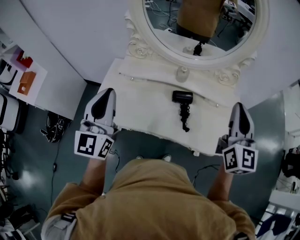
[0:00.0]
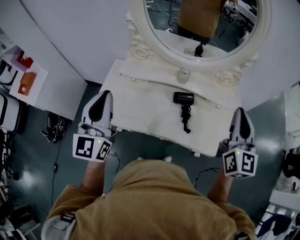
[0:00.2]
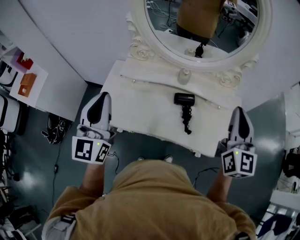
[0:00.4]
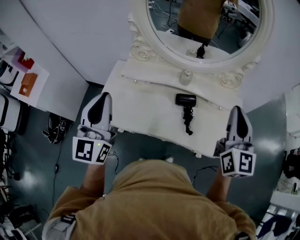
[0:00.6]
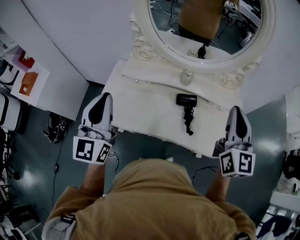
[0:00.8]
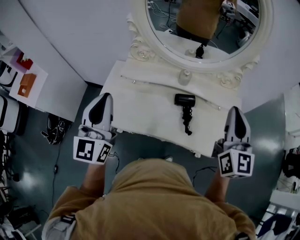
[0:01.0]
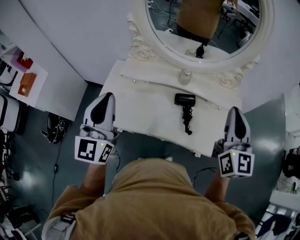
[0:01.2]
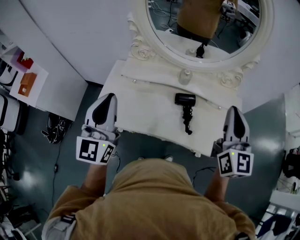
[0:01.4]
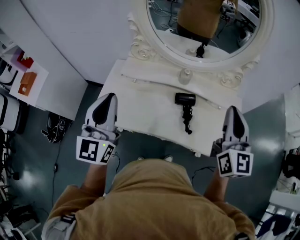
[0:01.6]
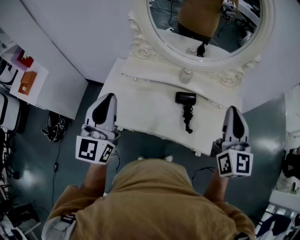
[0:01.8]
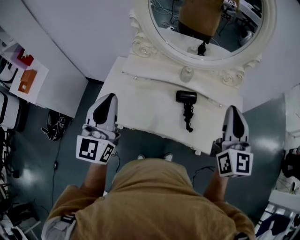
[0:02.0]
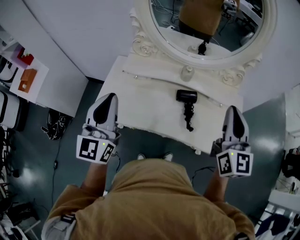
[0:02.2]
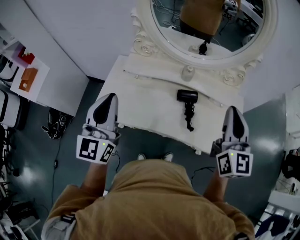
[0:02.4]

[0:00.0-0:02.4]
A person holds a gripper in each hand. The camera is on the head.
0:00.0 to 0:02.4: The grippers make only small movements.

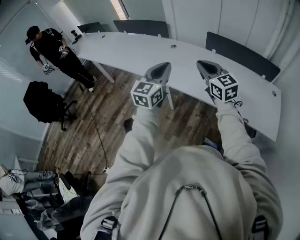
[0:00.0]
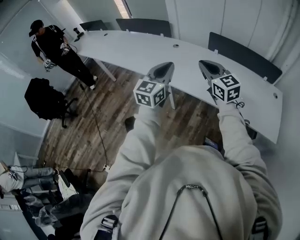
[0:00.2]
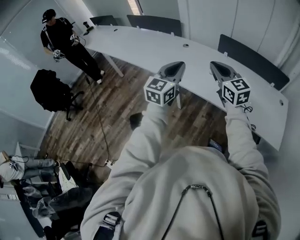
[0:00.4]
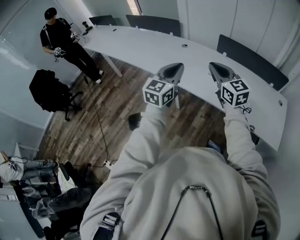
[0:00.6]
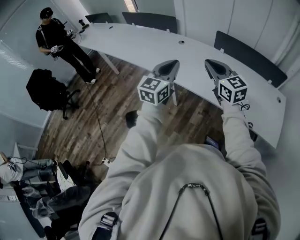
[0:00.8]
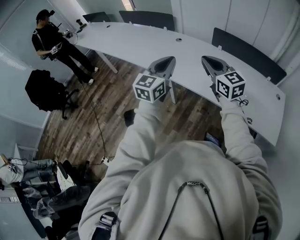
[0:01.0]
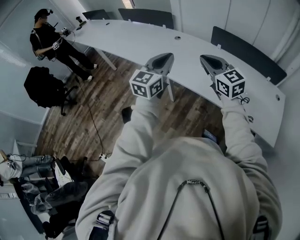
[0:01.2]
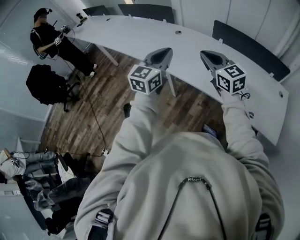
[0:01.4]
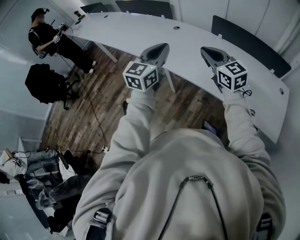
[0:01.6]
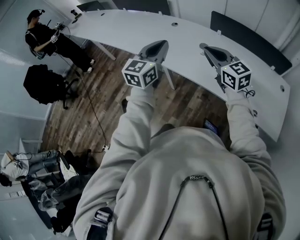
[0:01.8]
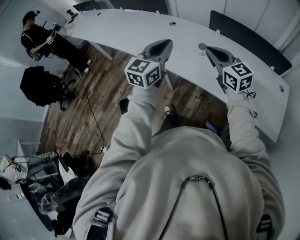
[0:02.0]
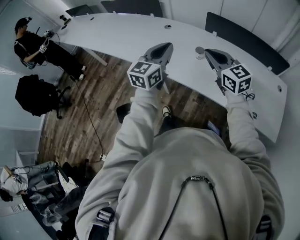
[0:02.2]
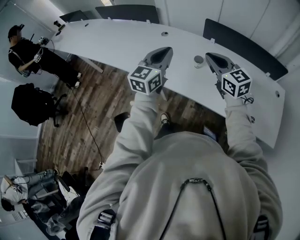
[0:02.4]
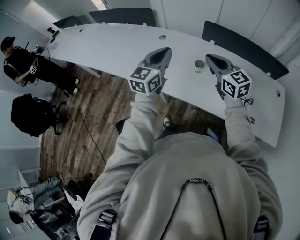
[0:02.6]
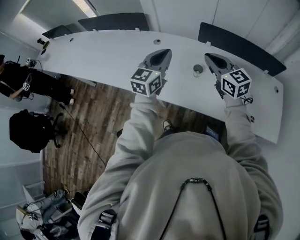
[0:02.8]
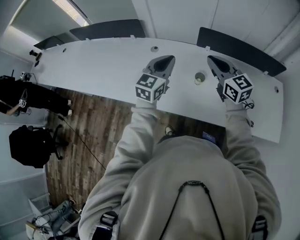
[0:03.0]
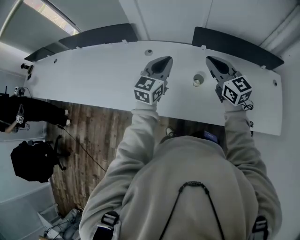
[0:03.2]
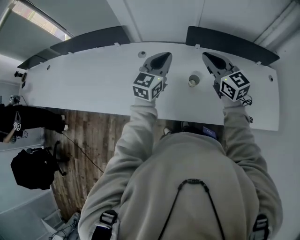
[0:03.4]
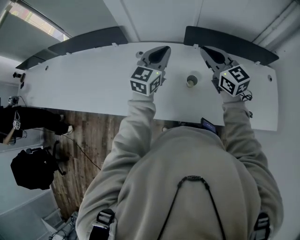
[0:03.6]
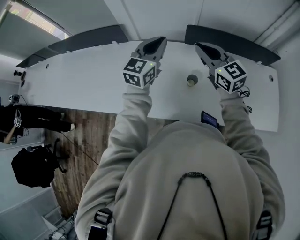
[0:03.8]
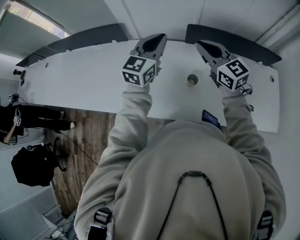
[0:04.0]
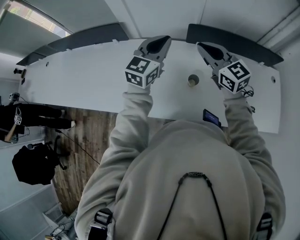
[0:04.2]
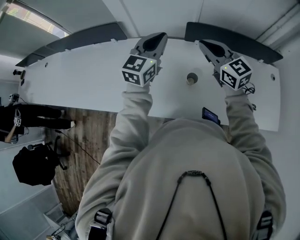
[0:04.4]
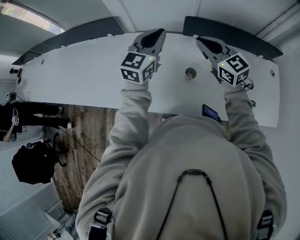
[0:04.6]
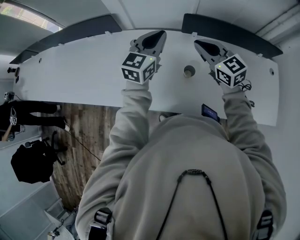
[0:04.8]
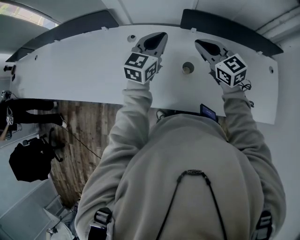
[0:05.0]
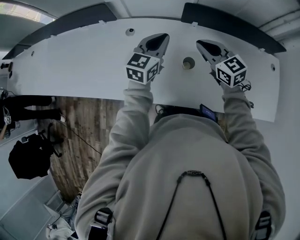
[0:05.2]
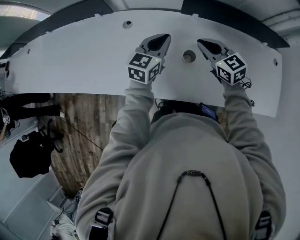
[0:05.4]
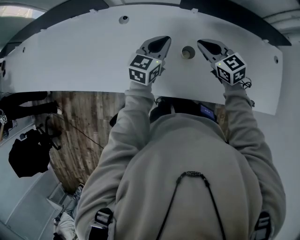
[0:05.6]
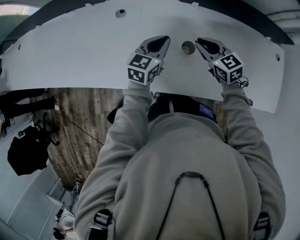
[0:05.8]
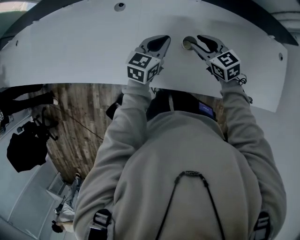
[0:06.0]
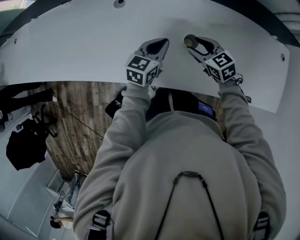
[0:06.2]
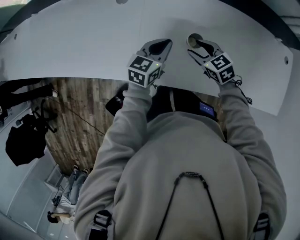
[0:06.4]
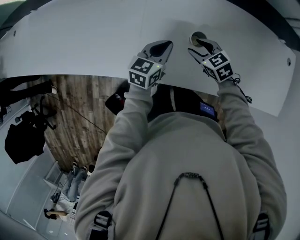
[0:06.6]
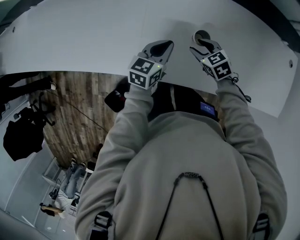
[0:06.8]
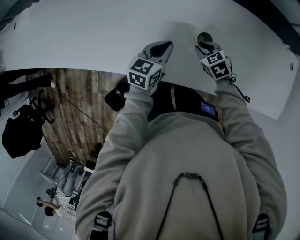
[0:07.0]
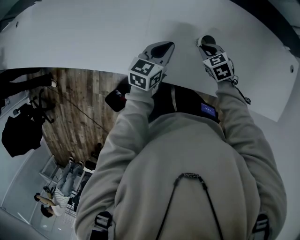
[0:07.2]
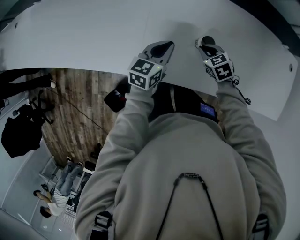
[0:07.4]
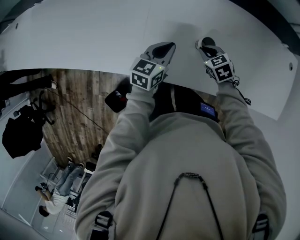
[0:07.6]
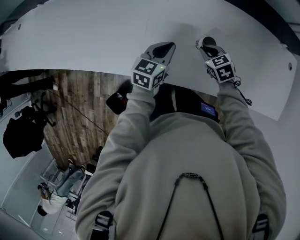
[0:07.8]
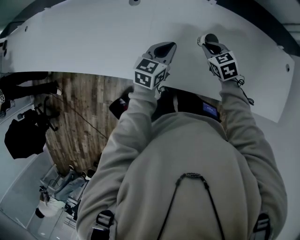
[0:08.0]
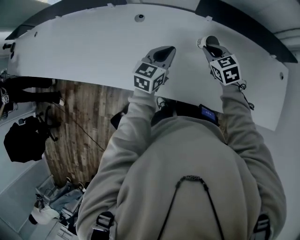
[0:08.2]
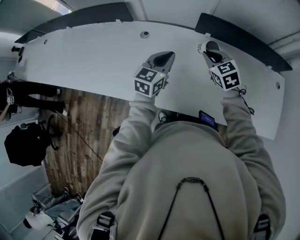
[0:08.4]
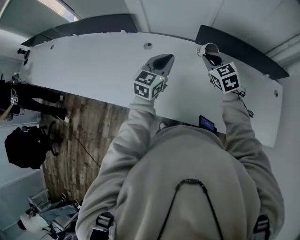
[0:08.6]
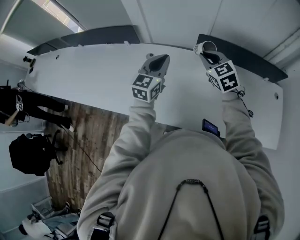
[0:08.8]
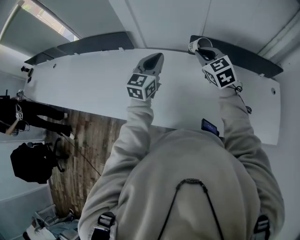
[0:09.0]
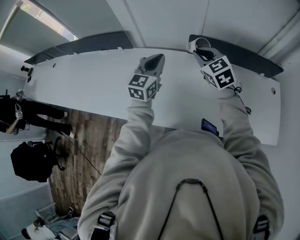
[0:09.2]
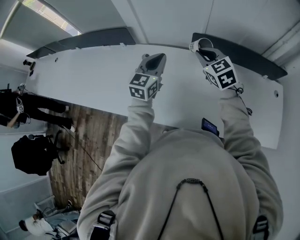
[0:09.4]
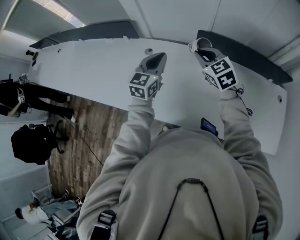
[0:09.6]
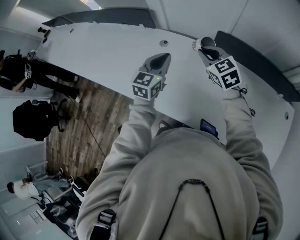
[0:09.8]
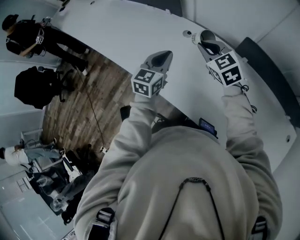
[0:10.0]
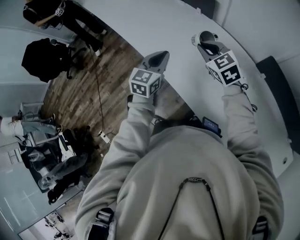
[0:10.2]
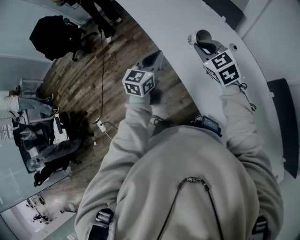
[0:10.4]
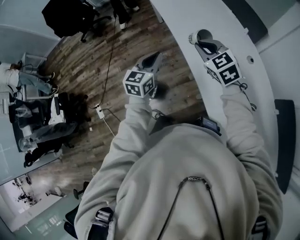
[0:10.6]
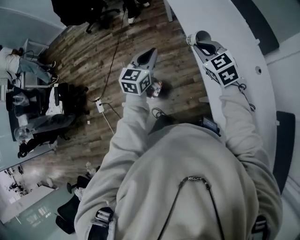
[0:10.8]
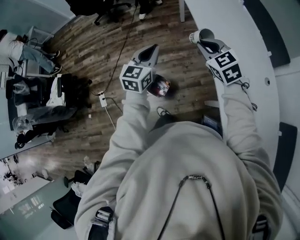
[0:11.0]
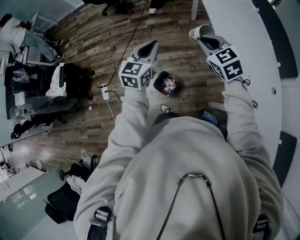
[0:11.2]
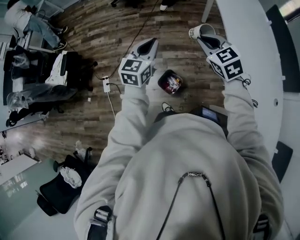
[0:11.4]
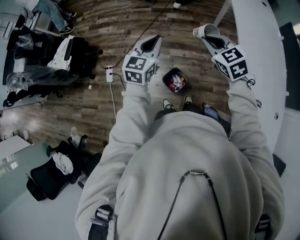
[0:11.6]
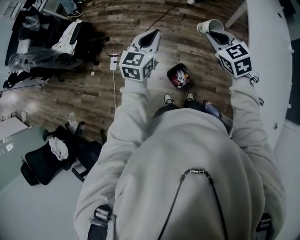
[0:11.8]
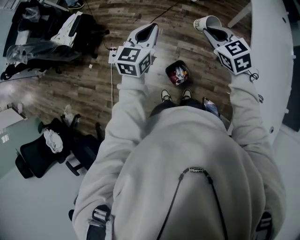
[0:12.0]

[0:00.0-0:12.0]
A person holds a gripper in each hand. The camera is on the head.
0:00.0 to 0:01.6: The left gripper ends up approximately 5 cm from where it was; the right gripper travels to the right by roughly 5 cm.
0:01.6 to 0:03.0: Both grippers move forward, about 30 cm. The left gripper rotates approximately 20 degrees; the right gripper swivels some 20 degrees.
0:03.0 to 0:04.4: The two grippers go some 10 cm forward.
0:04.4 to 0:06.0: The two grippers go approximately 25 cm downward. The left gripper rotates roughly 30 degrees. The right gripper swivels about 30 degrees, and opens its fingers.
0:06.0 to 0:07.6: The right gripper heads downward, covering approximately 10 cm, swivels about 20 degrees, and closes its fingers; the left gripper travels downward by roughly 5 cm.
0:07.6 to 0:09.0: Both grippers move upward, roughly 30 cm. The right gripper points its fingers approximately 30 degrees further upward, while the left gripper turns by roughly 30 degrees.
0:09.0 to 0:10.4: The left gripper ends up about 40 cm from where it was, and swivels roughly 50 degrees. The right gripper changes place by roughly 40 cm, and rotates approximately 60 degrees.
0:10.4 to 0:12.0: The pair of grippers is taken about 60 cm. The left gripper rotates about 50 degrees, while the right gripper turns by some 50 degrees.

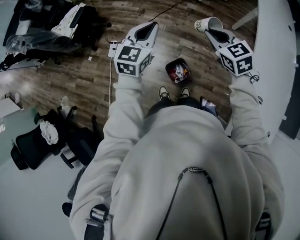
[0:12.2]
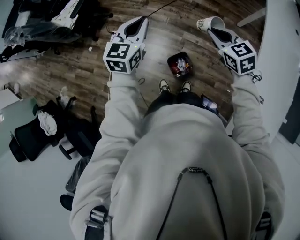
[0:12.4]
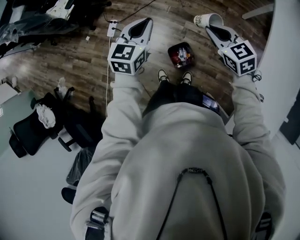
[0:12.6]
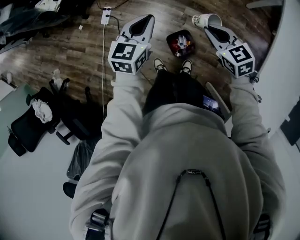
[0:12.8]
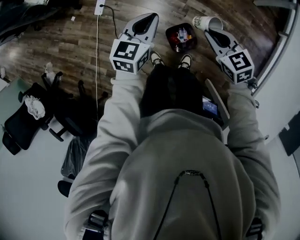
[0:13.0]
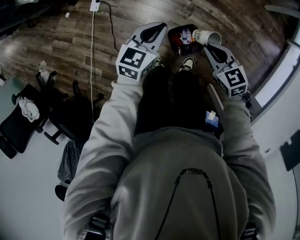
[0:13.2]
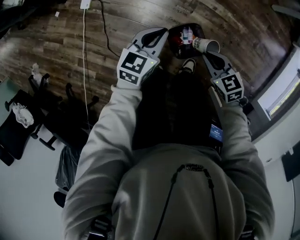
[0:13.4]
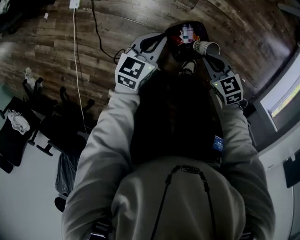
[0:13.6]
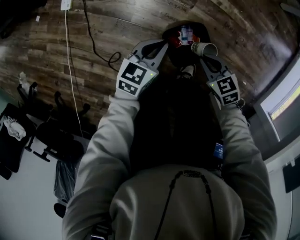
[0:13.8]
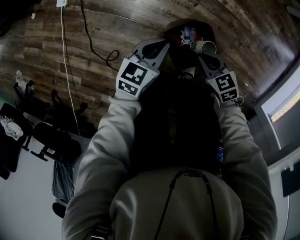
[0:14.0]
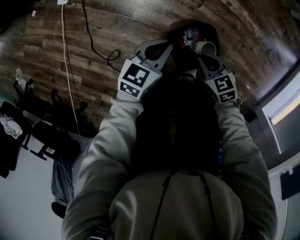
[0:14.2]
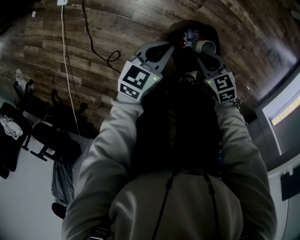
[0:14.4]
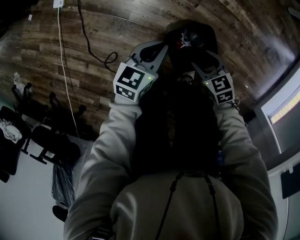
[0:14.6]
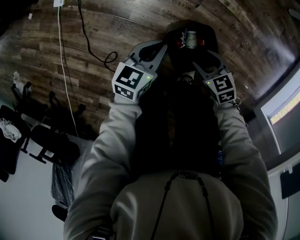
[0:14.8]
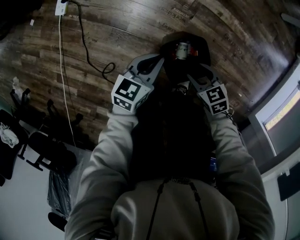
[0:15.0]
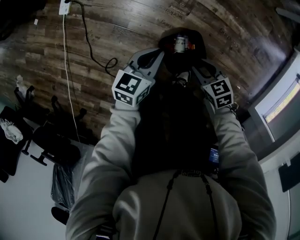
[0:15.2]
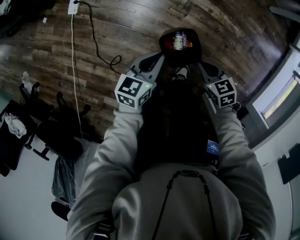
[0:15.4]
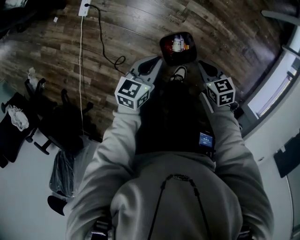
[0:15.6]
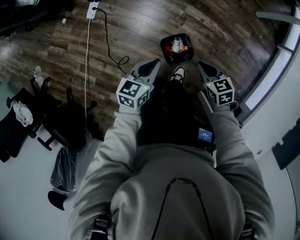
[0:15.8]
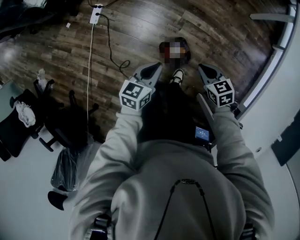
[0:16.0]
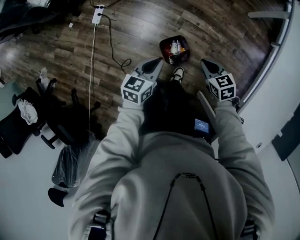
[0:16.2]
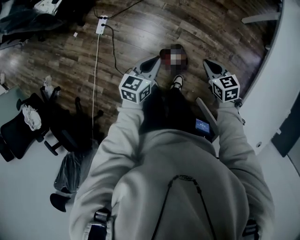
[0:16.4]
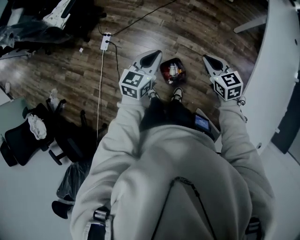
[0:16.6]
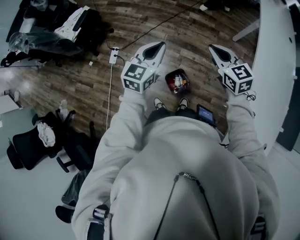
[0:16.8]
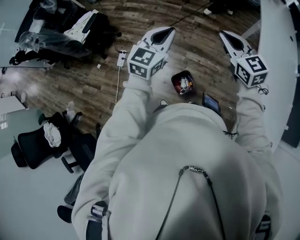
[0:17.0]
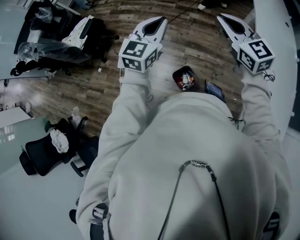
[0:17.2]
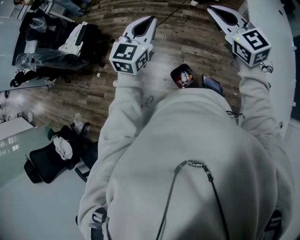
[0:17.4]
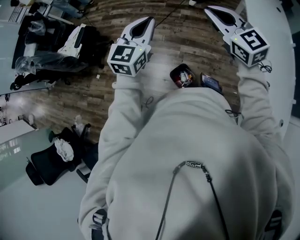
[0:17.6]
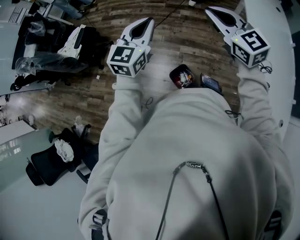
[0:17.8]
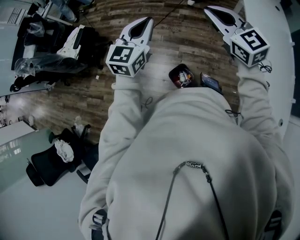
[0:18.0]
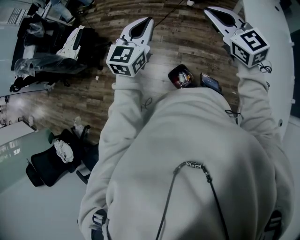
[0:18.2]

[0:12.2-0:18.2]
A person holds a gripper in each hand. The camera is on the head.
0:12.2 to 0:13.8: The two grippers go roughly 70 cm downward. The left gripper changes its angle by approximately 30 degrees. The right gripper turns by roughly 30 degrees.
0:13.8 to 0:15.2: The right gripper moves approximately 10 cm downward and comes back, and opens up.
0:15.2 to 0:16.6: The grippers both shift upward by approximately 50 cm. The right gripper rotates approximately 30 degrees, and closes up.
0:16.6 to 0:18.2: The two grippers go roughly 25 cm upward. The left gripper rotates some 30 degrees; the right gripper rotates some 30 degrees.

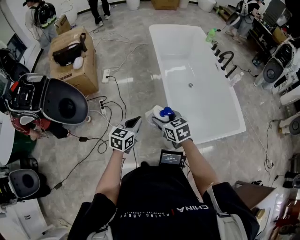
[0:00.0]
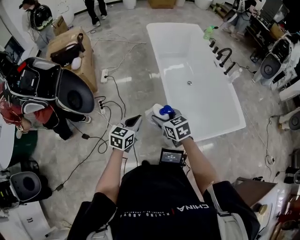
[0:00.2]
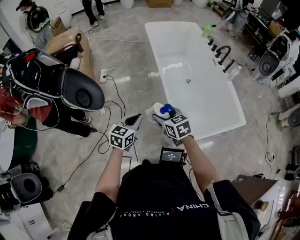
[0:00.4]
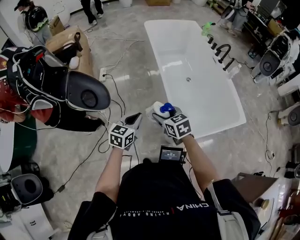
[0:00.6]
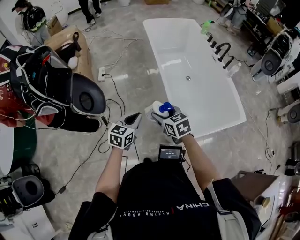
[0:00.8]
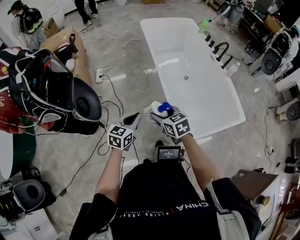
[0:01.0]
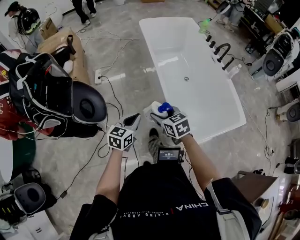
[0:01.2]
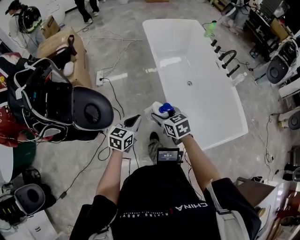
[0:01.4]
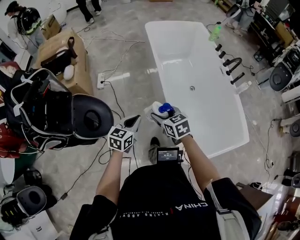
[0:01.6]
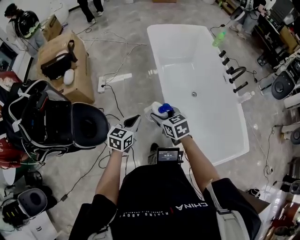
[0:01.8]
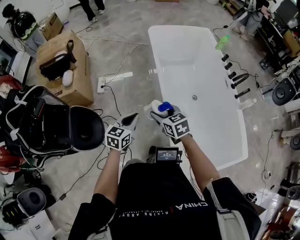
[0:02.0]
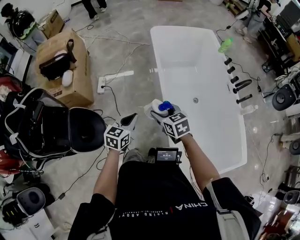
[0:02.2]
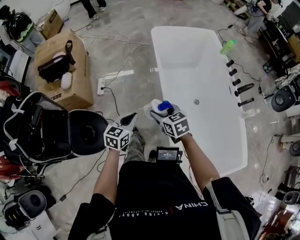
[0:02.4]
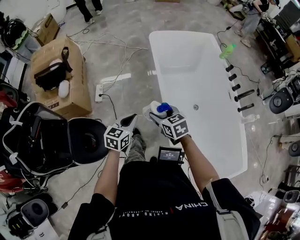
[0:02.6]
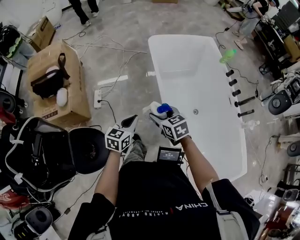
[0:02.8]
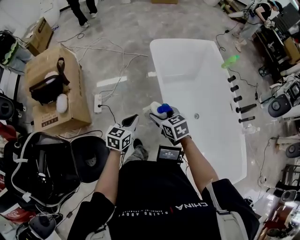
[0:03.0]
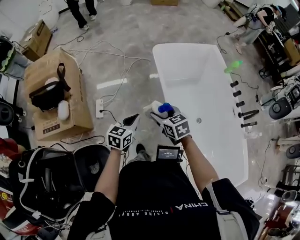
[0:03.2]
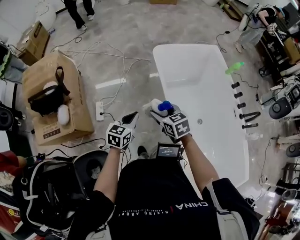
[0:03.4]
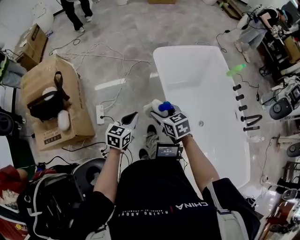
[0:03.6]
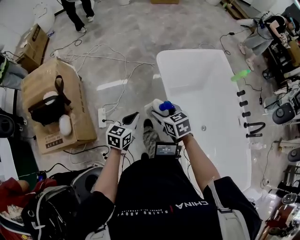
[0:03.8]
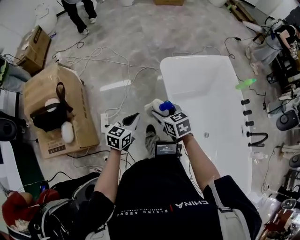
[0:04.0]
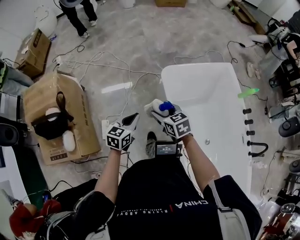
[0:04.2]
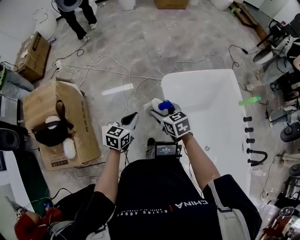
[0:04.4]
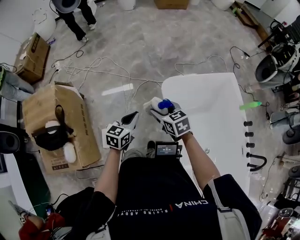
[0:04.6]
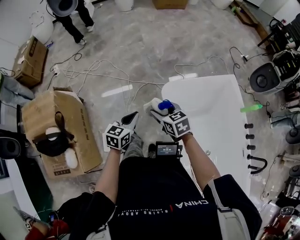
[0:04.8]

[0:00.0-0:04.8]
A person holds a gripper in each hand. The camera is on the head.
0:00.0 to 0:01.6: Both grippers travel together forward, approximately 20 cm.
0:01.6 to 0:03.2: The two grippers travel together, forward, roughly 50 cm.
0:03.2 to 0:04.8: The pair of grippers is taken forward, some 50 cm.
